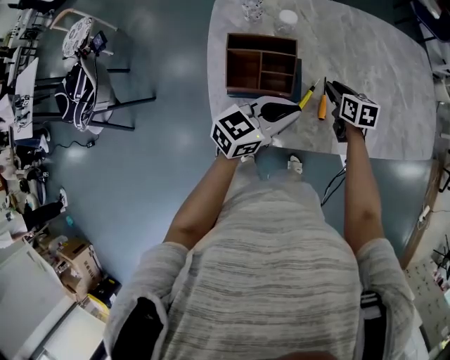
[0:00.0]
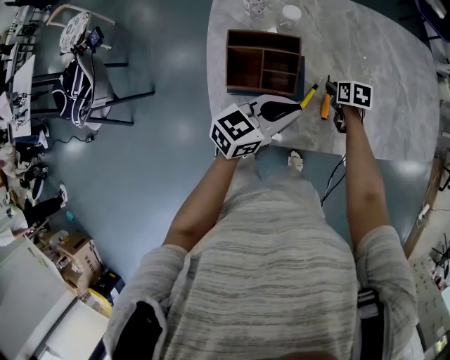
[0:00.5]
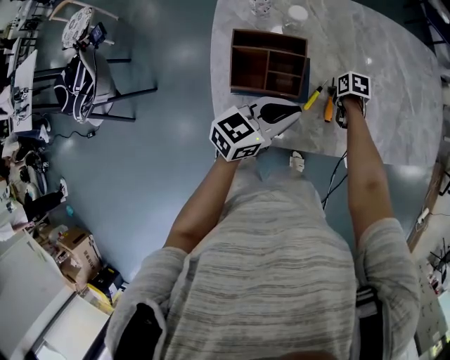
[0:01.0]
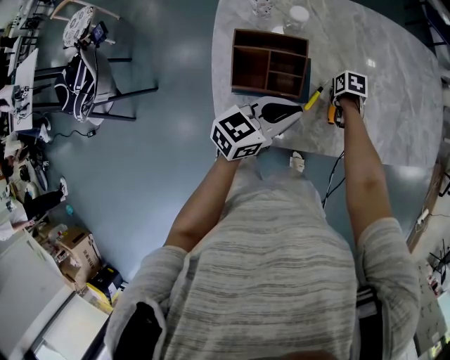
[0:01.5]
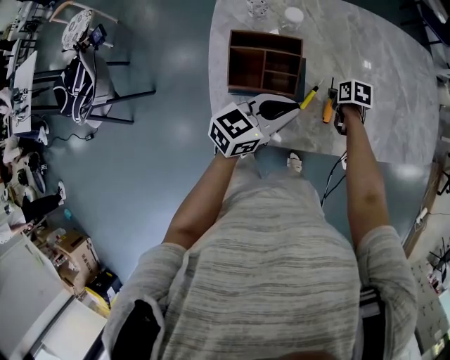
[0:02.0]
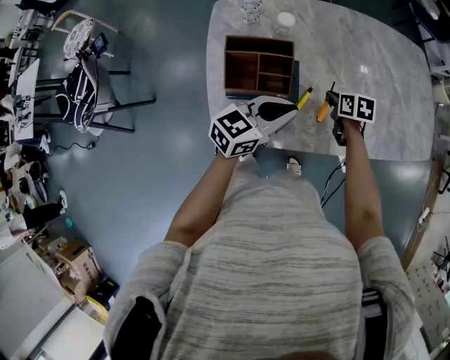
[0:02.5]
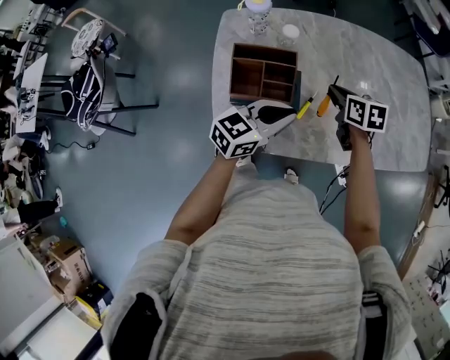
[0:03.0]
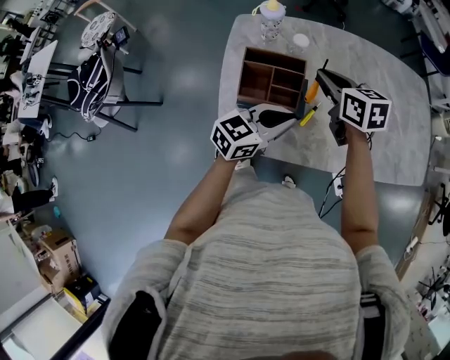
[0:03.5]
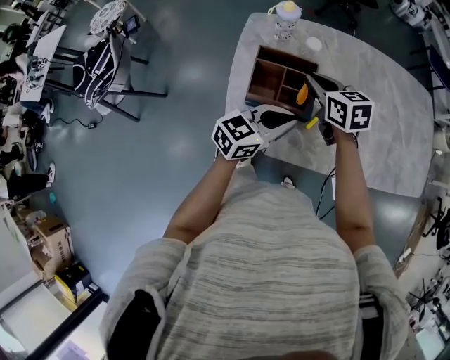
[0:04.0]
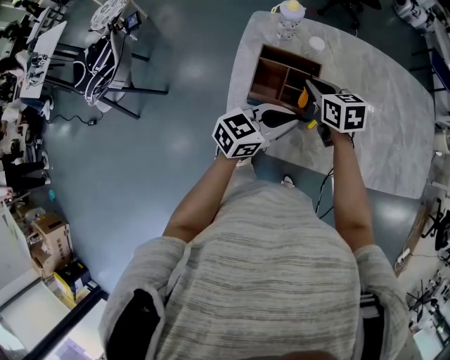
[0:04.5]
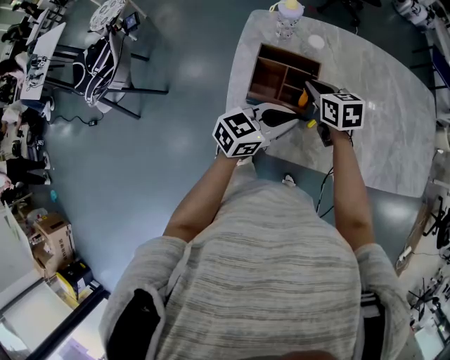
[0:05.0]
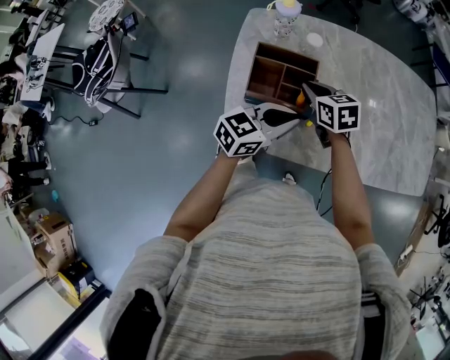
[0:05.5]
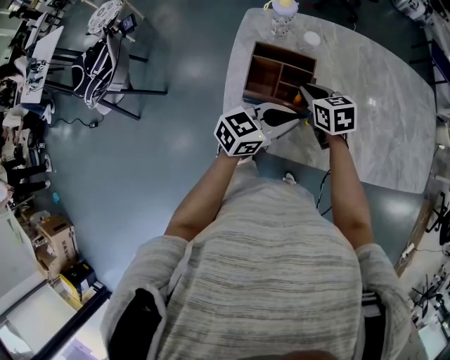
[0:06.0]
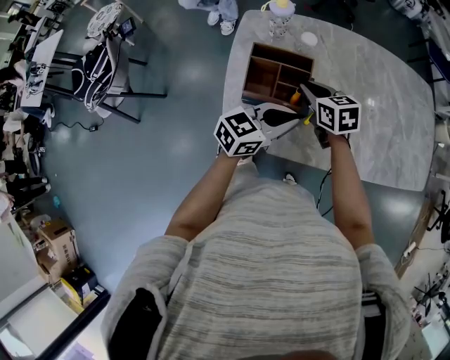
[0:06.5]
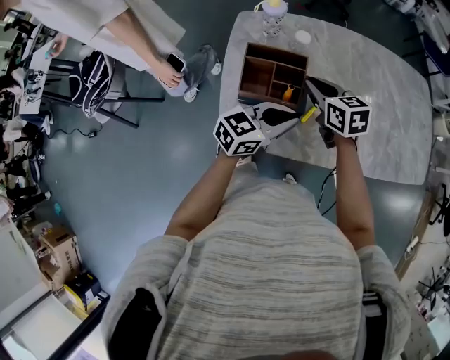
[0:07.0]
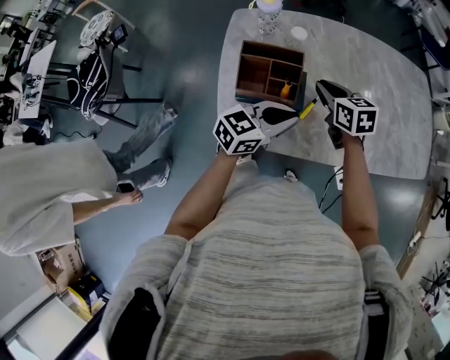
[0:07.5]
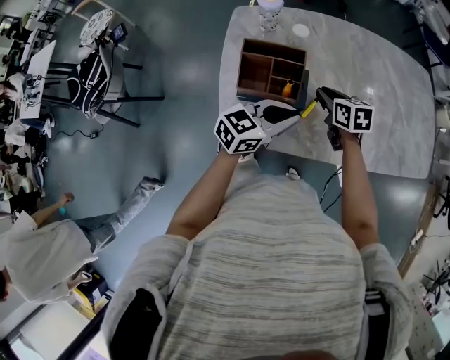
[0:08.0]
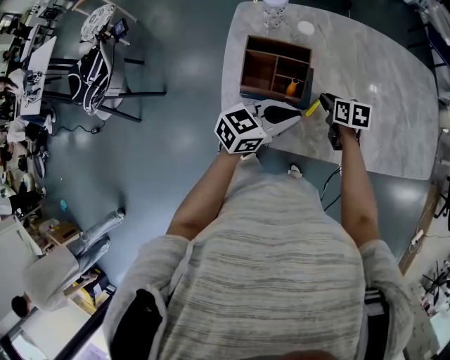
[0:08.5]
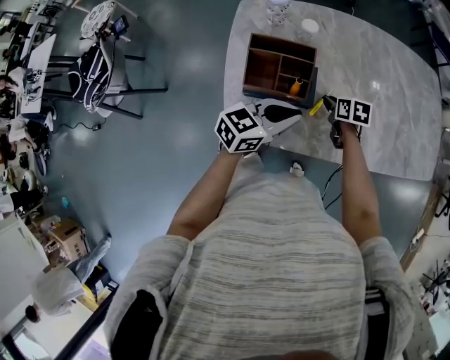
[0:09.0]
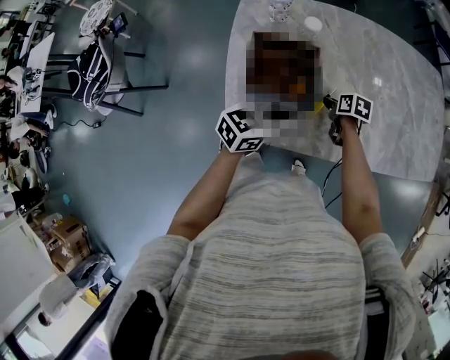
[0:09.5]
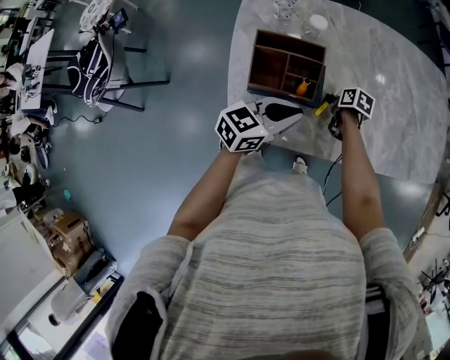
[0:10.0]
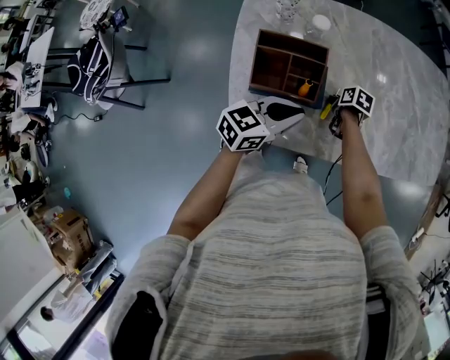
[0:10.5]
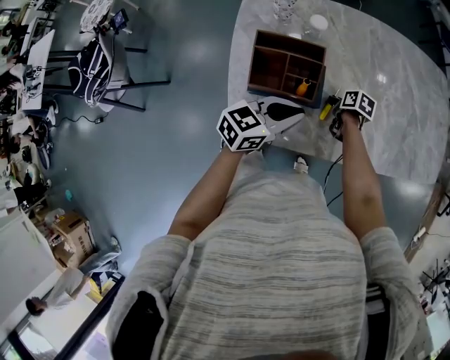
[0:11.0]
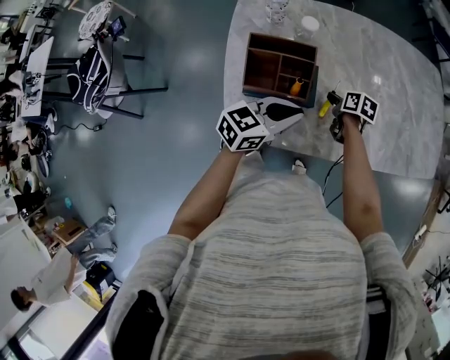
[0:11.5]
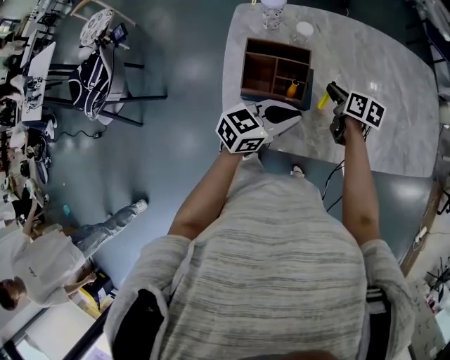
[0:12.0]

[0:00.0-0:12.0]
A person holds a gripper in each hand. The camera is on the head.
0:00.0 to 0:02.0: The right gripper goes roughly 10 cm downward, and swivels approximately 30 degrees.
0:02.0 to 0:04.0: The right gripper is displaced upward and to the left by some 30 cm, and tilts its fingers about 40 degrees upward.
0:04.0 to 0:06.0: The right gripper is displaced downward by some 5 cm.
0:06.0 to 0:08.0: The right gripper travels to the right by about 10 cm.
0:08.0 to 0:10.0: The right gripper heads downward, covering approximately 15 cm, and changes its angle by roughly 40 degrees.
0:10.0 to 0:12.0: The right gripper shifts some 15 cm upward, and turns by approximately 30 degrees.

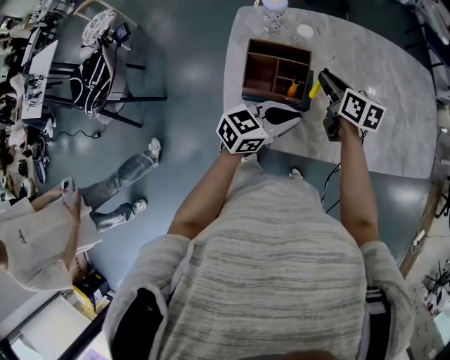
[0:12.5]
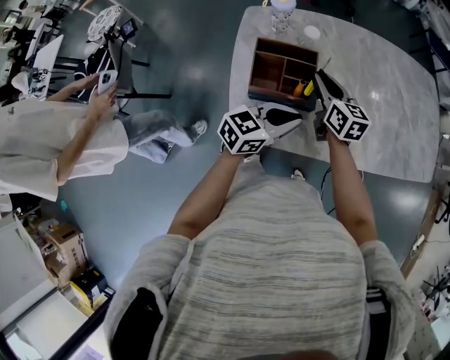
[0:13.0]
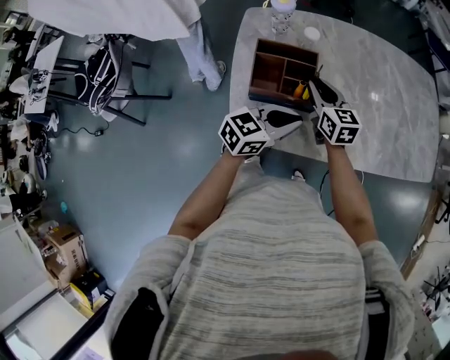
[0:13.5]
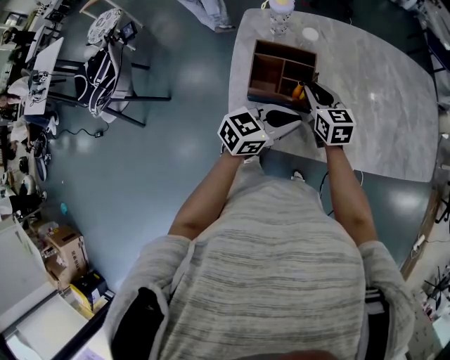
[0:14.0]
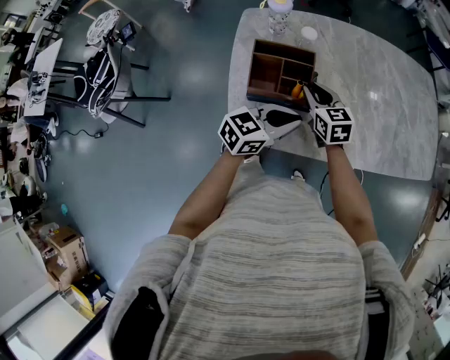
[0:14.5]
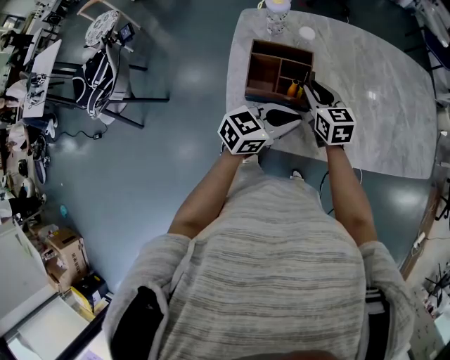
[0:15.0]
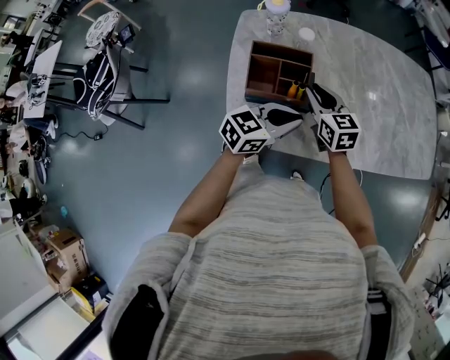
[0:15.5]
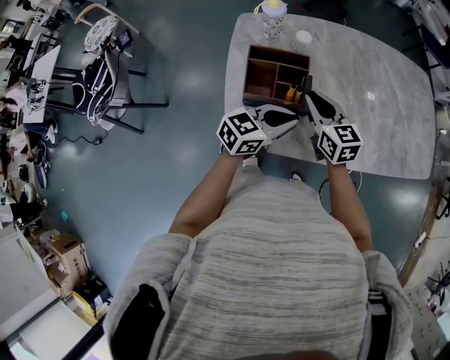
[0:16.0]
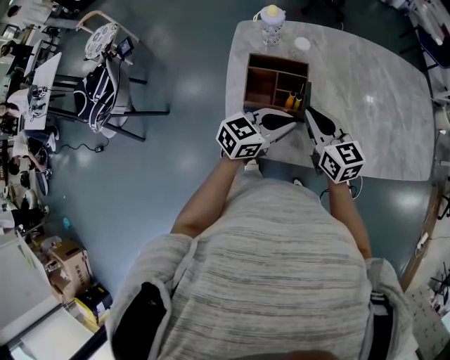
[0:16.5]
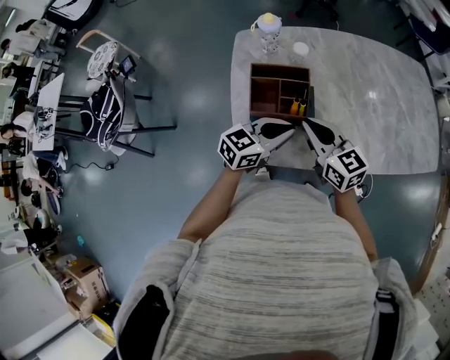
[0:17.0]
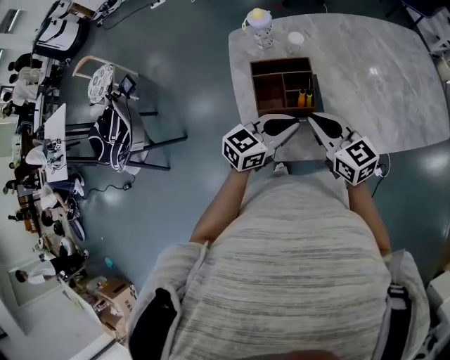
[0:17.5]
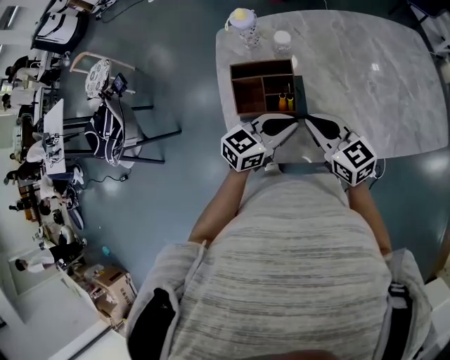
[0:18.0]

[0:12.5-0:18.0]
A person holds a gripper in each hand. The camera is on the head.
0:12.5 to 0:14.5: The right gripper heads backward, covering about 5 cm, and turns by about 30 degrees.
0:14.5 to 0:16.0: The right gripper goes approximately 5 cm upward.

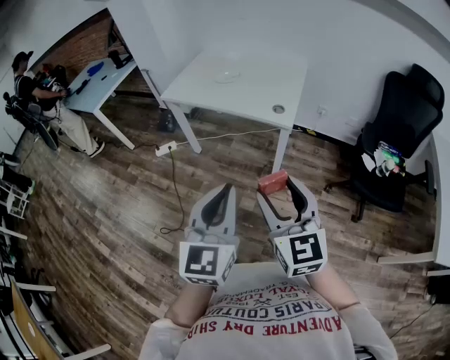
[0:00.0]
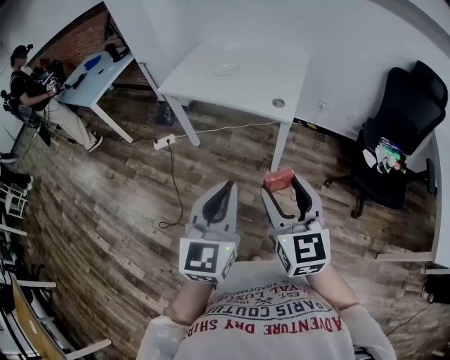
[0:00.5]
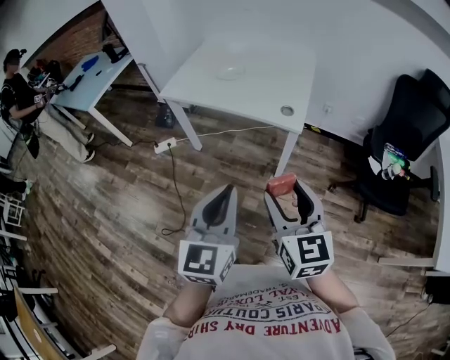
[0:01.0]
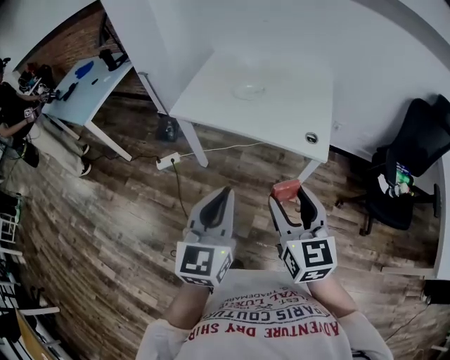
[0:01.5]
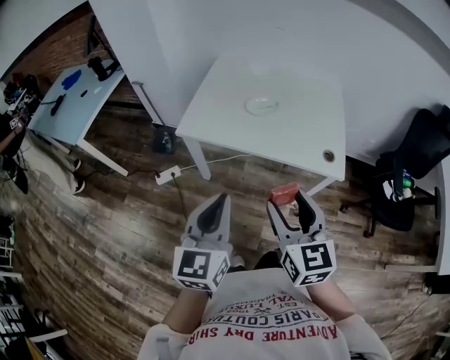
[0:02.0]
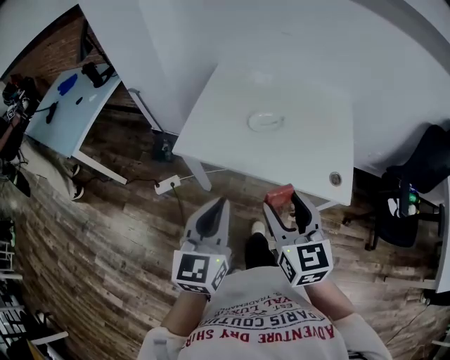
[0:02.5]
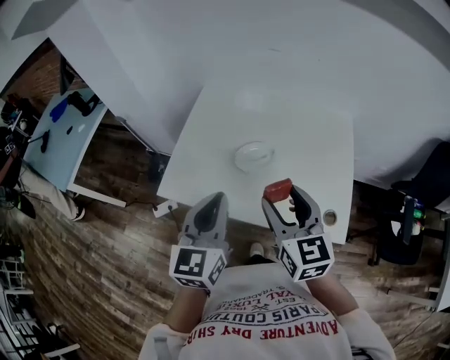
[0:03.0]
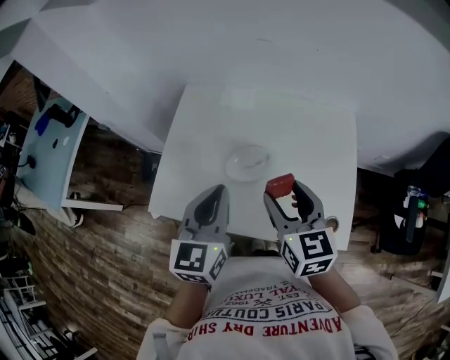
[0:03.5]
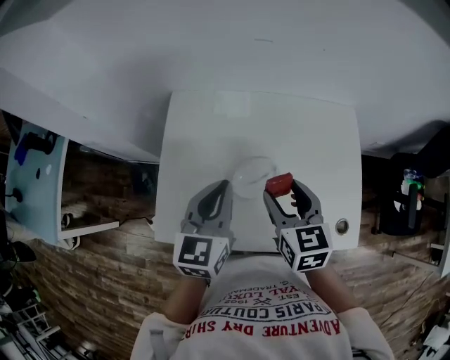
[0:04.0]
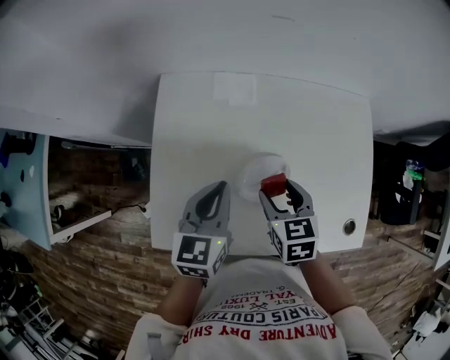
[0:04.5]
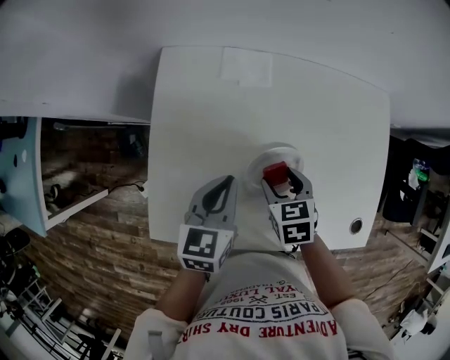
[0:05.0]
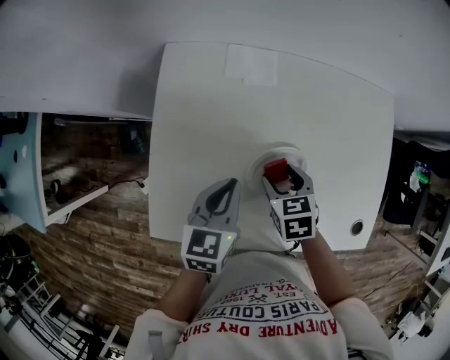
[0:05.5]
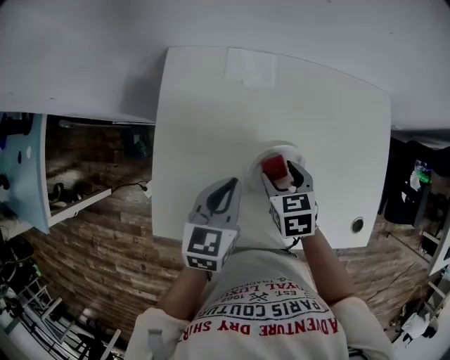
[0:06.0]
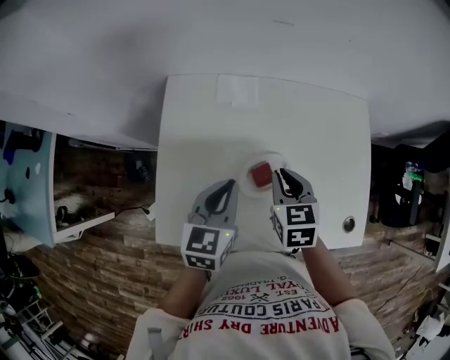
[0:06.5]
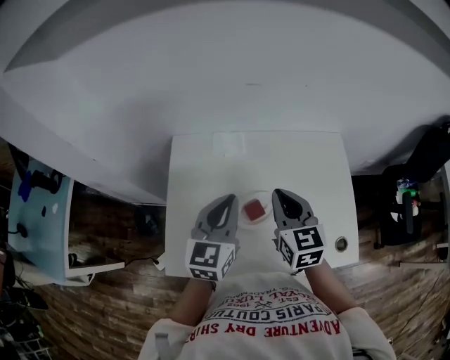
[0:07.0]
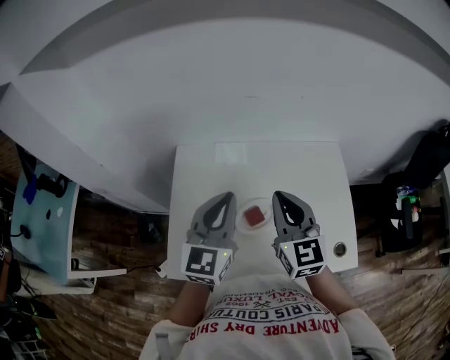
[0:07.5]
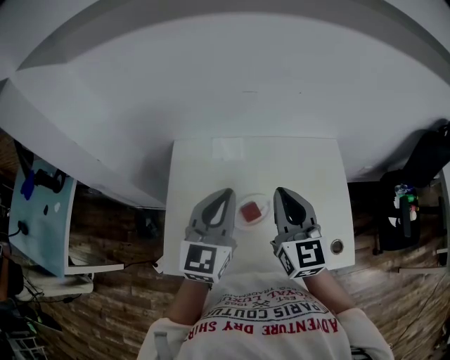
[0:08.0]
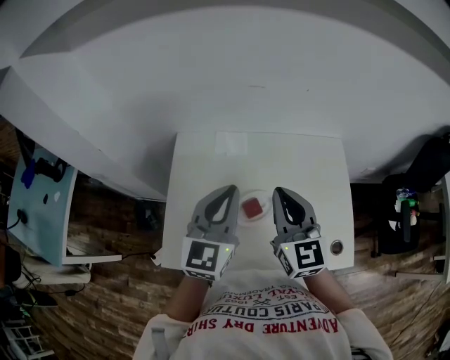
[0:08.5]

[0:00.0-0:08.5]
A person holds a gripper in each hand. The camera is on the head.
0:00.0 to 0:02.0: The pair of grippers is taken forward and to the left, some 40 cm.
0:02.0 to 0:04.0: The pair of grippers is taken forward, some 50 cm. The right gripper rotates some 20 degrees.
0:04.0 to 0:06.5: The right gripper shifts approximately 10 cm downward and forward, and closes, while the left gripper is displaced downward by roughly 10 cm.
0:06.5 to 0:08.5: Both grippers move upward, approximately 20 cm. The left gripper changes its angle by about 30 degrees. The right gripper tilts its fingers some 40 degrees upward.

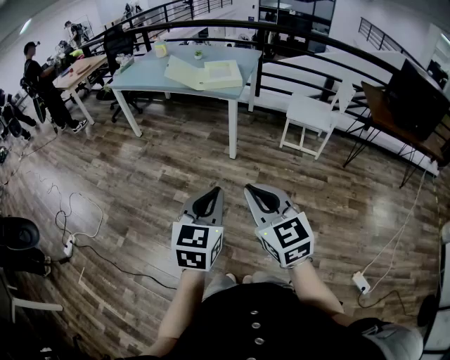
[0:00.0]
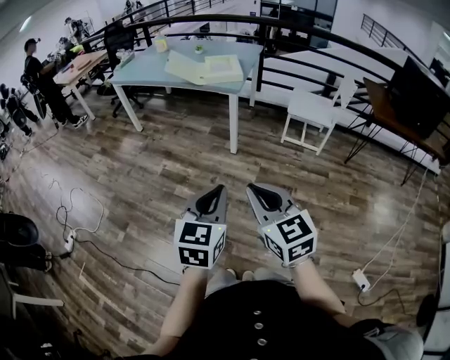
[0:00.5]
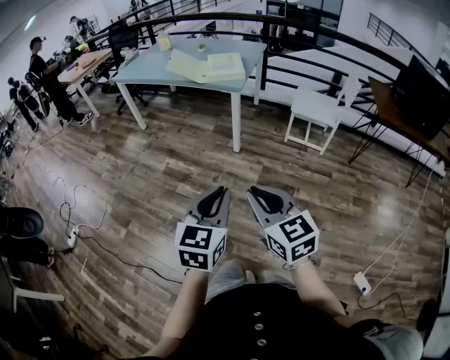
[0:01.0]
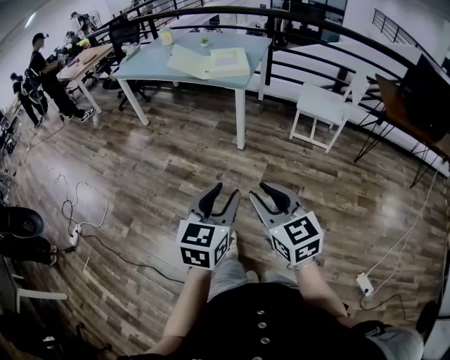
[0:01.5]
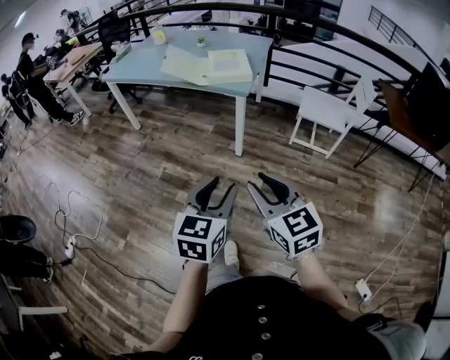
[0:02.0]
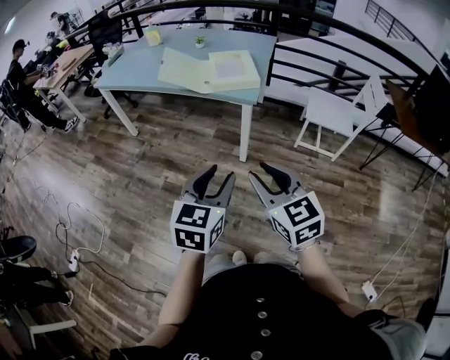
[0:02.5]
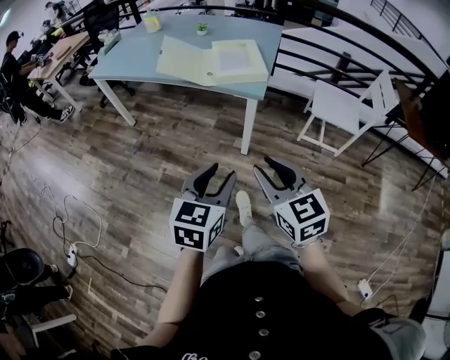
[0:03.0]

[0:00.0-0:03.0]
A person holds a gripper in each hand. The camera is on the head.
0:00.0 to 0:01.5: The left gripper ends up about 5 cm from where it was, and opens, while the right gripper travels downward by about 5 cm, and opens its fingers.
0:01.5 to 0:03.0: Both grippers move forward, about 35 cm.
